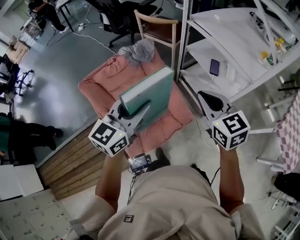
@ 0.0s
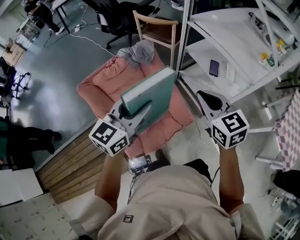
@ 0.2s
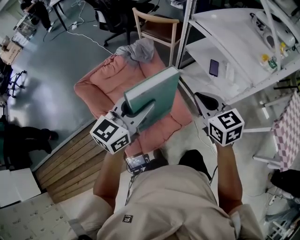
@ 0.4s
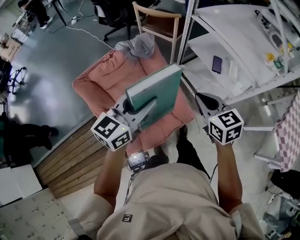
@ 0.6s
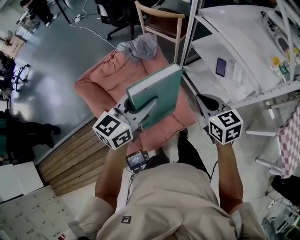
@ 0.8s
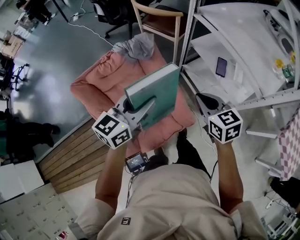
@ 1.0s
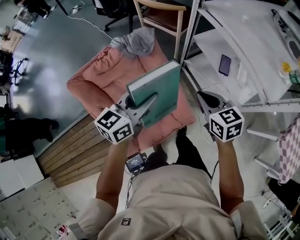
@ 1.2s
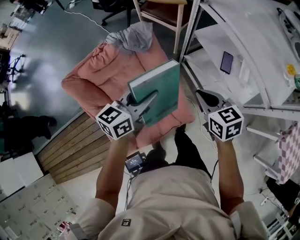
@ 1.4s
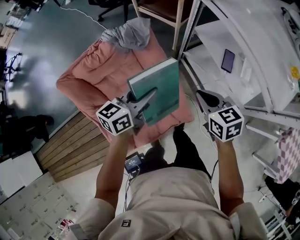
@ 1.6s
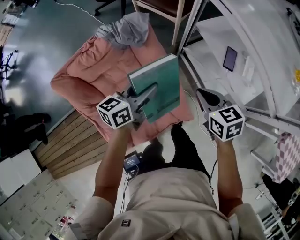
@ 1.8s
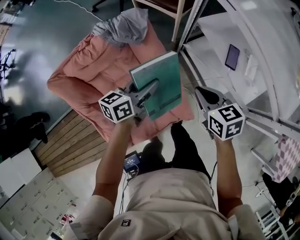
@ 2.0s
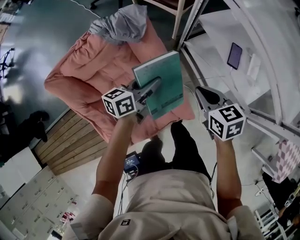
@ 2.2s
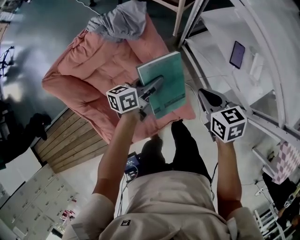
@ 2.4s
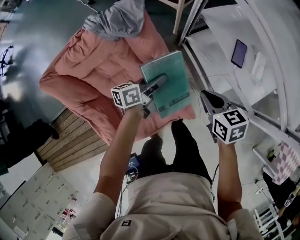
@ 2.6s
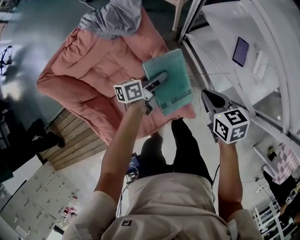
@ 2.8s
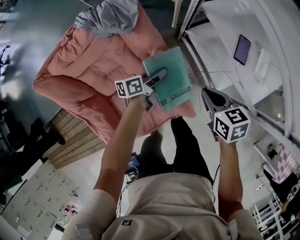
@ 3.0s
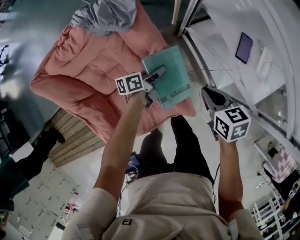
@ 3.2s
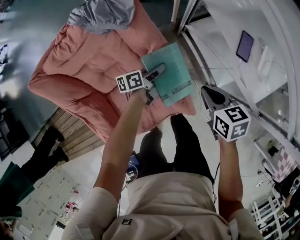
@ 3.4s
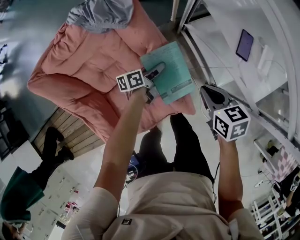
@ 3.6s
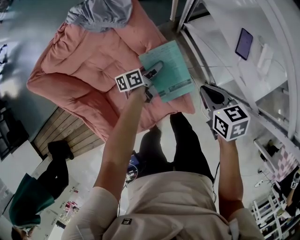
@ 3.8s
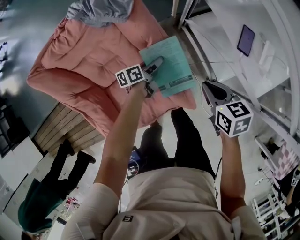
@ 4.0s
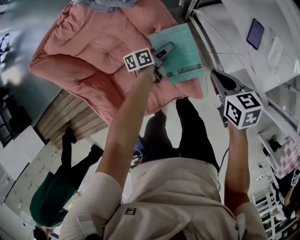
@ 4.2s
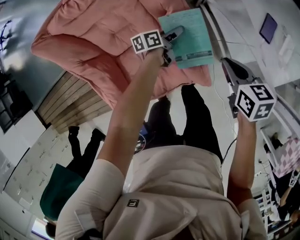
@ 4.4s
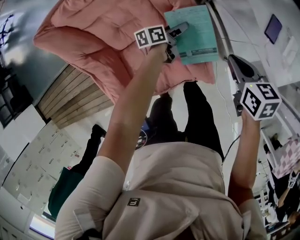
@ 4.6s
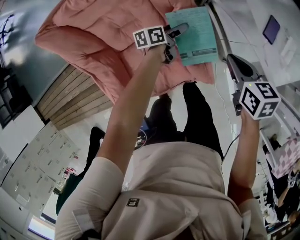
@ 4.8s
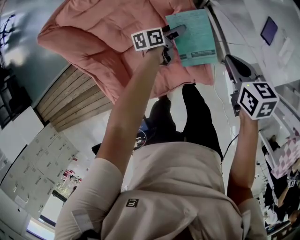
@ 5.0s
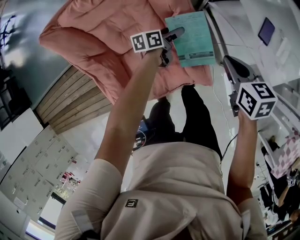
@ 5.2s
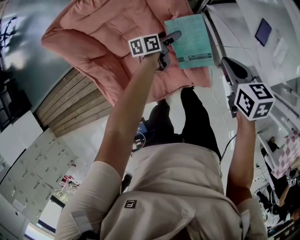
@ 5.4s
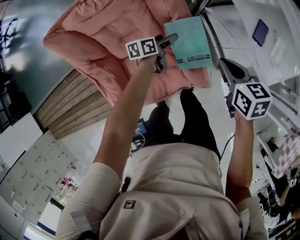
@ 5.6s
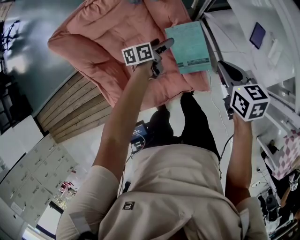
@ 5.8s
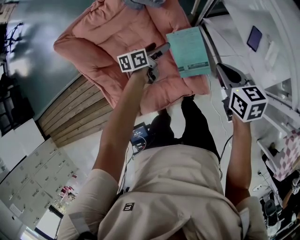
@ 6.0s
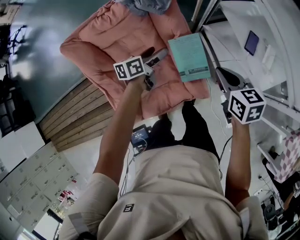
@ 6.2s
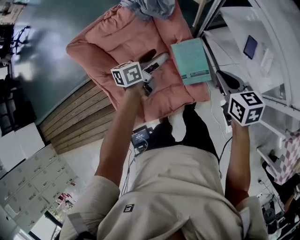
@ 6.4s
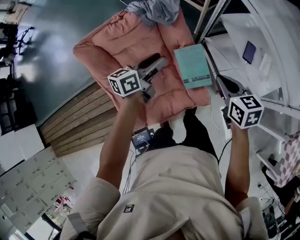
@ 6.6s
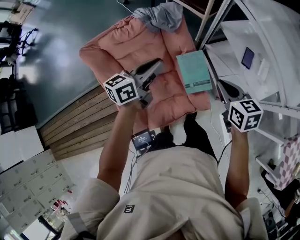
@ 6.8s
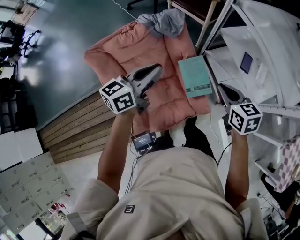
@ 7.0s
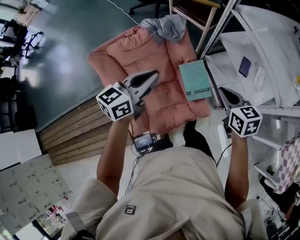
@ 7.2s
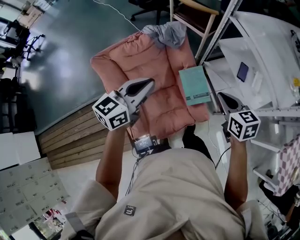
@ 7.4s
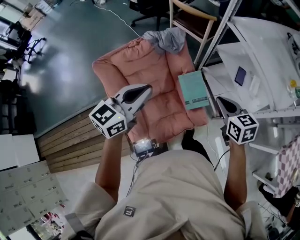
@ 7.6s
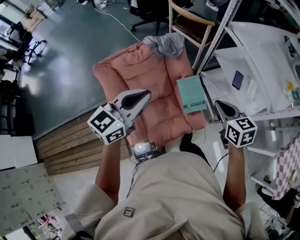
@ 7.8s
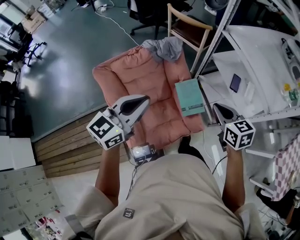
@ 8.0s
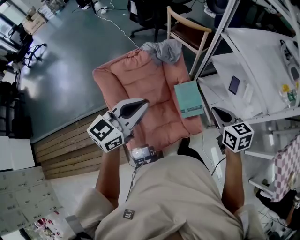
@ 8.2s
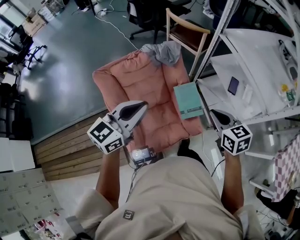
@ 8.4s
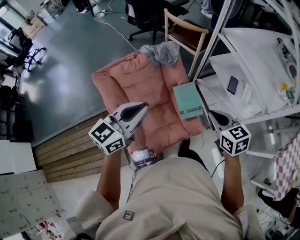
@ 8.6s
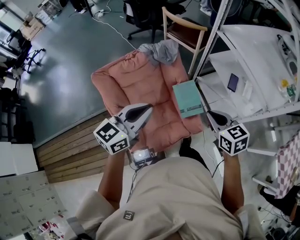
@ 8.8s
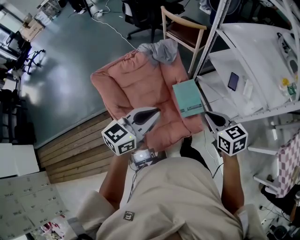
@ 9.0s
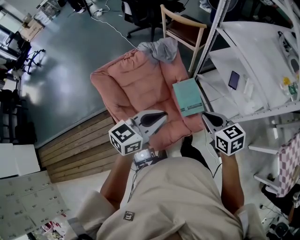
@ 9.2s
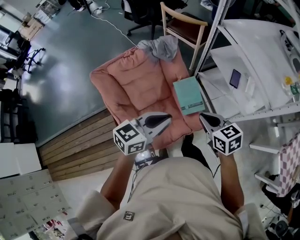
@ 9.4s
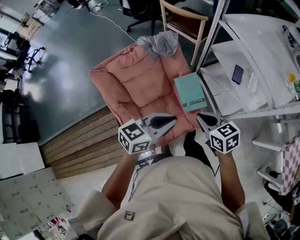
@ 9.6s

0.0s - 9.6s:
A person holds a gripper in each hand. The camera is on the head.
0.0s - 1.6s: Both grippers move downward and forward, roughly 30 cm. The right gripper turns by approximately 20 degrees, while the left gripper turns by roughly 30 degrees.
1.6s - 3.2s: The right gripper goes roughly 15 cm downward; the left gripper shifts about 30 cm downward, and swivels some 40 degrees.
3.2s - 4.8s: The left gripper opens its fingers.
4.8s - 6.4s: The left gripper goes about 25 cm upward and to the left, and turns by approximately 20 degrees, while the right gripper shifts some 15 cm upward.
6.4s - 8.0s: The left gripper heads upward and backward, covering roughly 35 cm, rolls clockwise, seen from behind, by some 40 degrees, and closes up. The right gripper is displaced upward and backward by roughly 15 cm.
8.0s - 9.6s: The right gripper is displaced downward by approximately 5 cm. The left gripper goes about 15 cm to the right and downward, and turns by approximately 20 degrees.

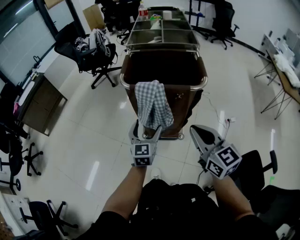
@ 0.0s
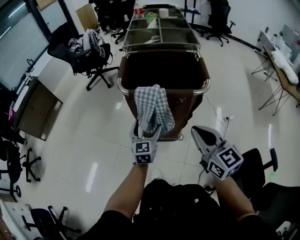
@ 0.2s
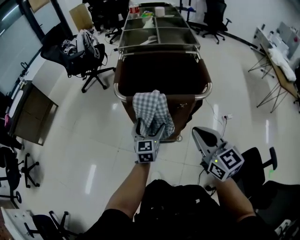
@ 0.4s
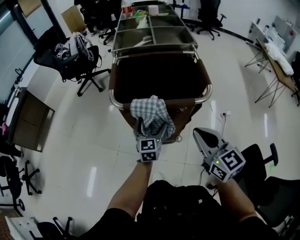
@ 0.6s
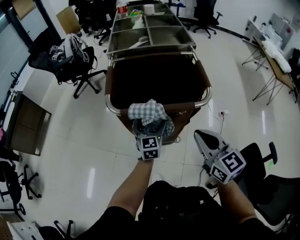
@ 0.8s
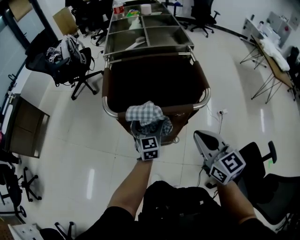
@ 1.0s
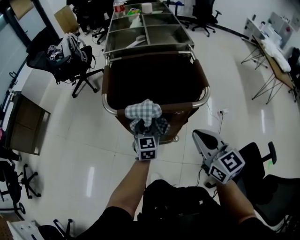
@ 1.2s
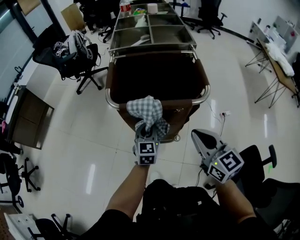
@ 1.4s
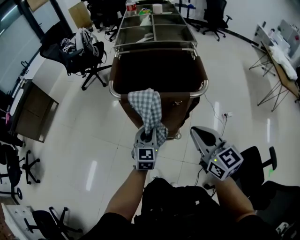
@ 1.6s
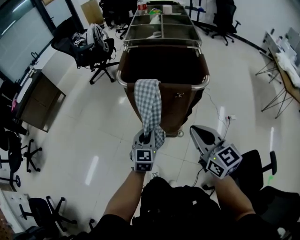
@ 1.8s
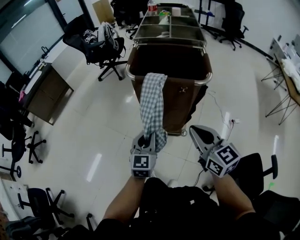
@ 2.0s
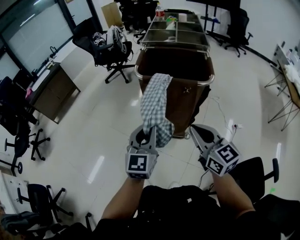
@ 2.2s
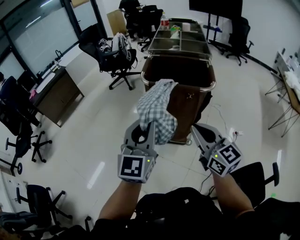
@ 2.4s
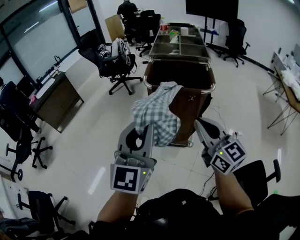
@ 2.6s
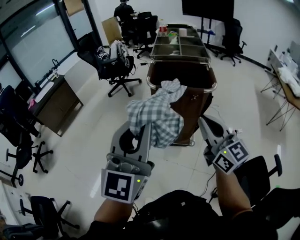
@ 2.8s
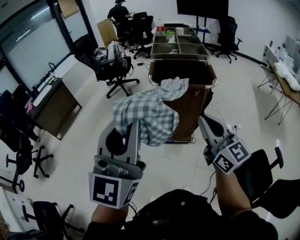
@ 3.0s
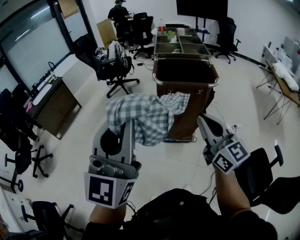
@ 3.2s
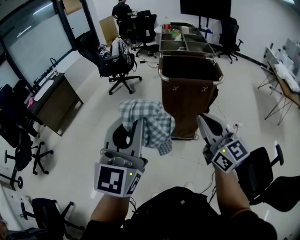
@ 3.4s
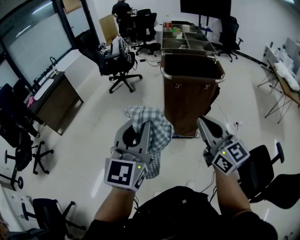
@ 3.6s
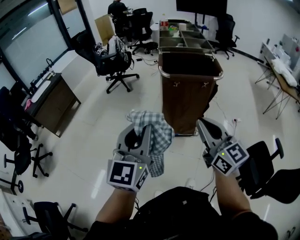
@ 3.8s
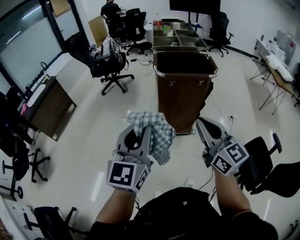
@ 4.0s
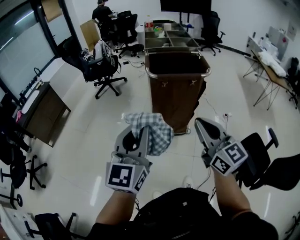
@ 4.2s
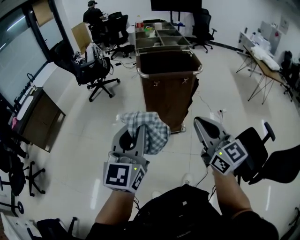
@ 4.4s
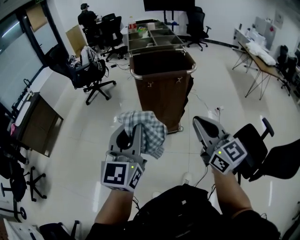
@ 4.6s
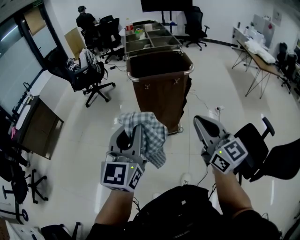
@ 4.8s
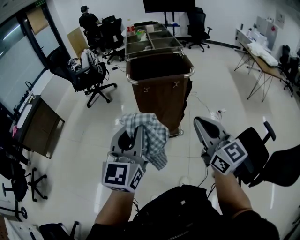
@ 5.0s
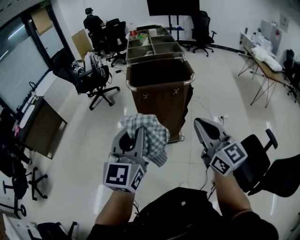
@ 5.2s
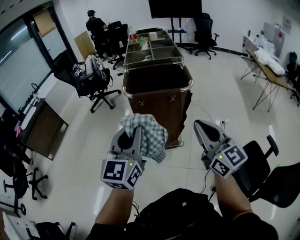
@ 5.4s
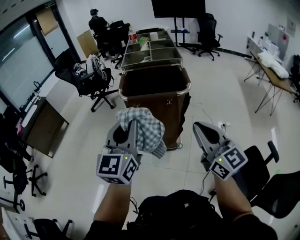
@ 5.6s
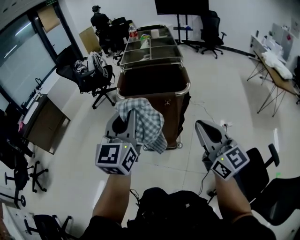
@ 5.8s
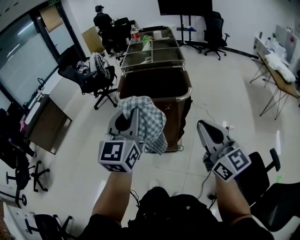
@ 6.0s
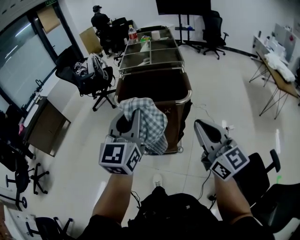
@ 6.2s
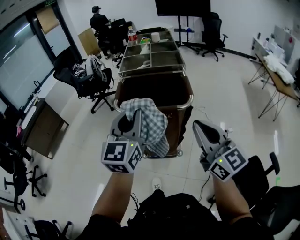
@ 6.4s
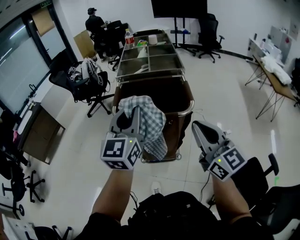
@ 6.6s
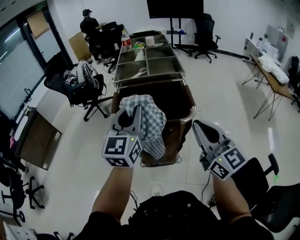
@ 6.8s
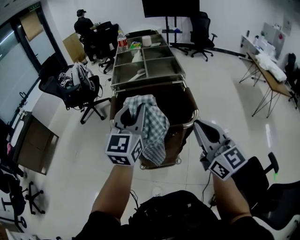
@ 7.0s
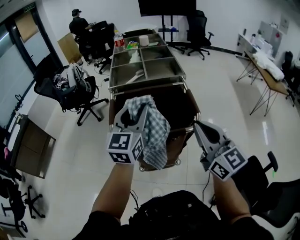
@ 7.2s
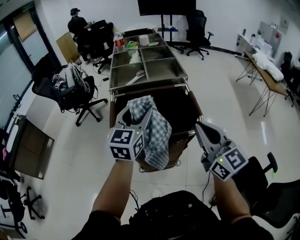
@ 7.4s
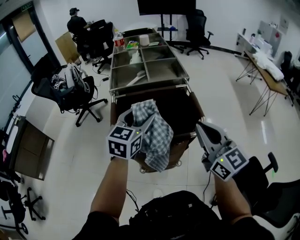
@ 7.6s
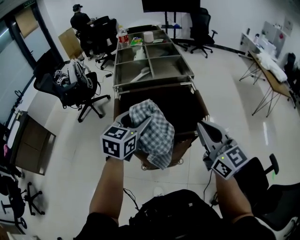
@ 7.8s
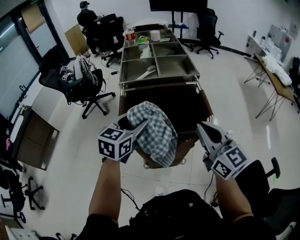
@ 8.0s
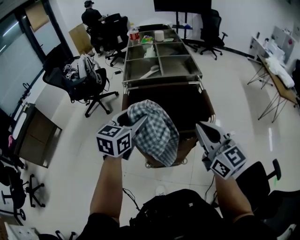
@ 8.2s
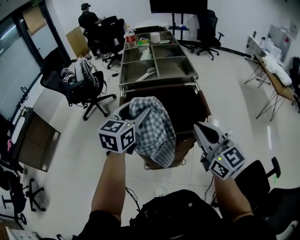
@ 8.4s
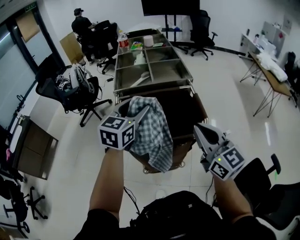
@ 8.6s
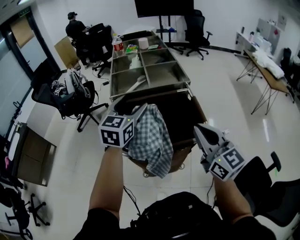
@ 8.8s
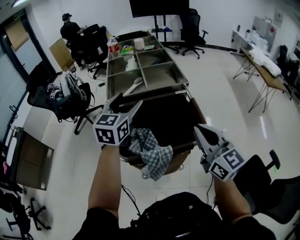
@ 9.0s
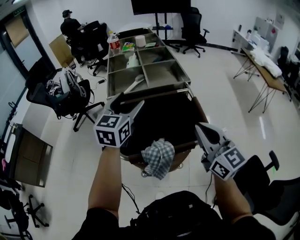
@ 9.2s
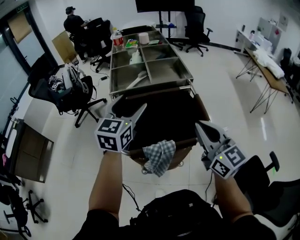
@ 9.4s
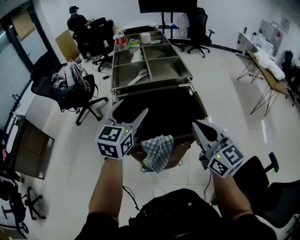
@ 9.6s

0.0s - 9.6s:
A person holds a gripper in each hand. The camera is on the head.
0.0s - 1.6s: The right gripper travels forward by about 5 cm; the left gripper reaches about 15 cm forward, then returns, and closes up.
1.6s - 3.2s: The right gripper travels to the left, backward and upward by roughly 25 cm. The left gripper goes some 60 cm upward, backward and to the left, and tilts its fingers some 40 degrees upward.
3.2s - 4.8s: The left gripper moves downward, about 10 cm, and swivels roughly 20 degrees, while the right gripper travels backward by about 5 cm, and travels to the left and back again, about 5 cm each way.
4.8s - 6.4s: Both grippers move forward and to the right, approximately 25 cm.
6.4s - 8.0s: The left gripper shifts some 20 cm forward and downward, rotates some 30 degrees, and opens, while the right gripper moves forward, approximately 15 cm.
8.0s - 9.6s: The left gripper is displaced upward by approximately 5 cm.

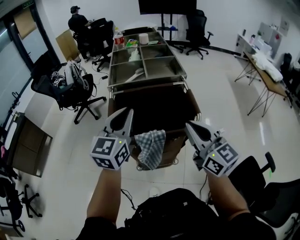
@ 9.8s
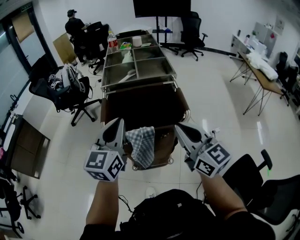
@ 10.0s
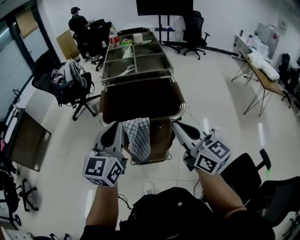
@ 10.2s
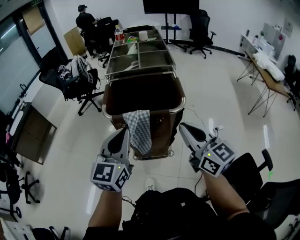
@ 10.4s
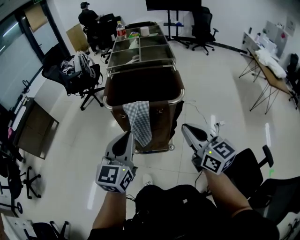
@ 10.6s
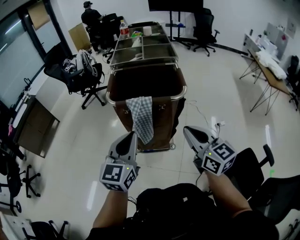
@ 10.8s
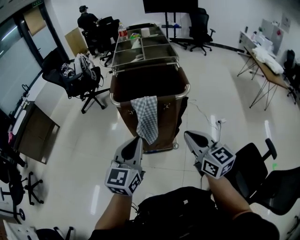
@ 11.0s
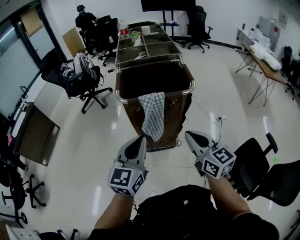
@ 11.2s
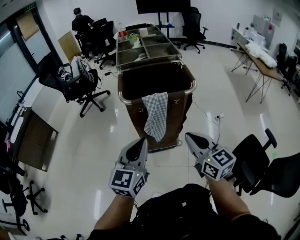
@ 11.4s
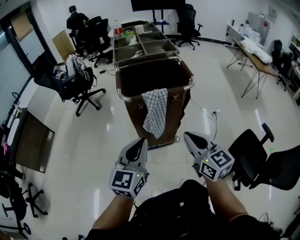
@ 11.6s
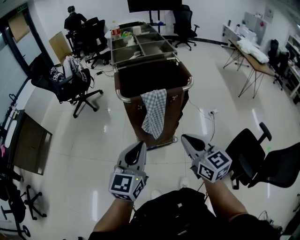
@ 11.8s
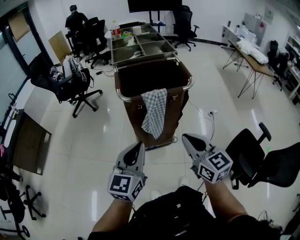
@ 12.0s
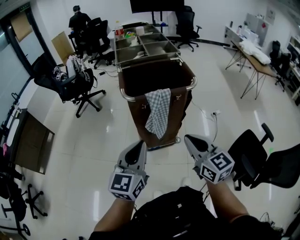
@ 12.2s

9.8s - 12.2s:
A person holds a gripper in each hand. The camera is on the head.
9.8s - 11.0s: The left gripper moves backward, roughly 25 cm. The right gripper moves backward and downward, approximately 20 cm.
11.0s - 12.2s: The right gripper shifts some 10 cm to the left and backward. The left gripper goes some 10 cm to the left.

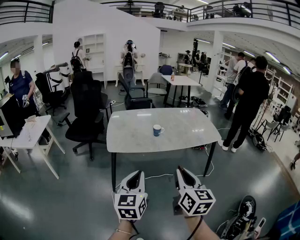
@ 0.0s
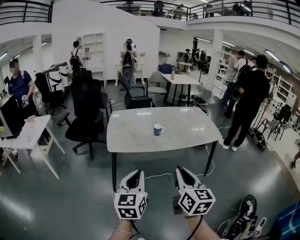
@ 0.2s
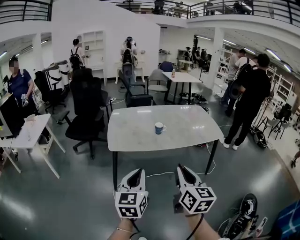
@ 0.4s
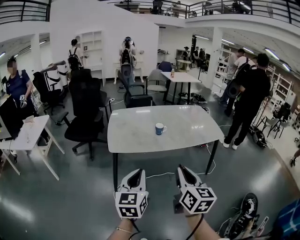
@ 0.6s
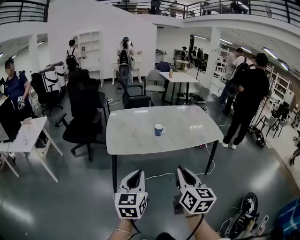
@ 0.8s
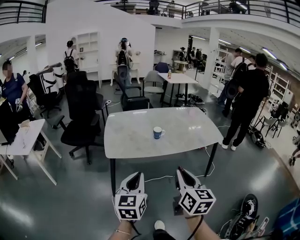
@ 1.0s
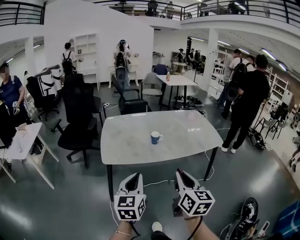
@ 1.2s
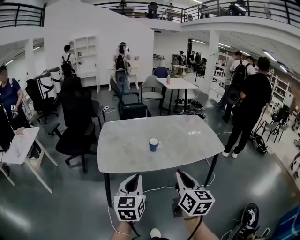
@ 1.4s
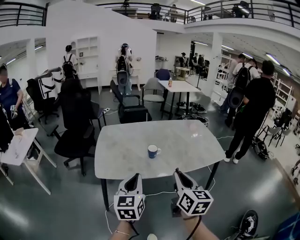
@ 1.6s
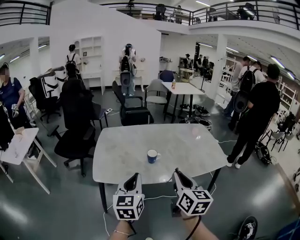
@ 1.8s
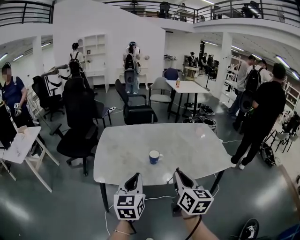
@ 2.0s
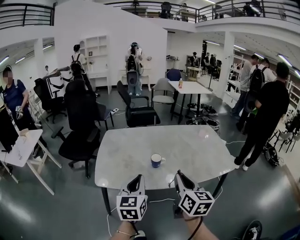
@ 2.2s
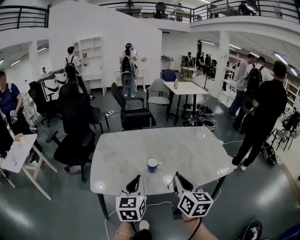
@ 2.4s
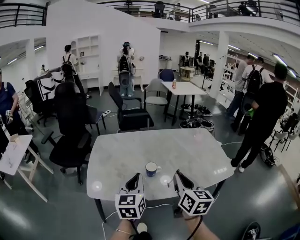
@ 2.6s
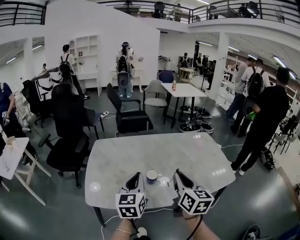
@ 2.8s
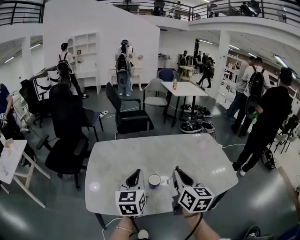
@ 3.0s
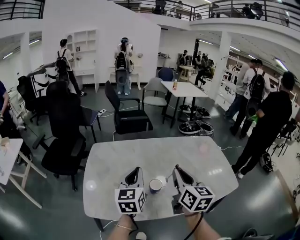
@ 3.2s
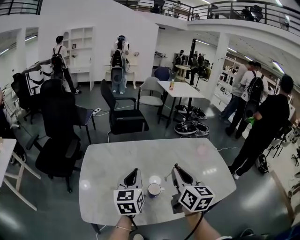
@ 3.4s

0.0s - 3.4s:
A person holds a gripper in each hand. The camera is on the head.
0.0s - 1.6s: The two grippers go roughly 20 cm forward.
1.6s - 3.4s: The two grippers go roughly 30 cm forward.
